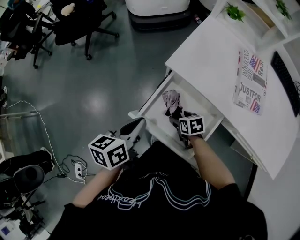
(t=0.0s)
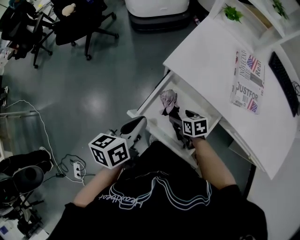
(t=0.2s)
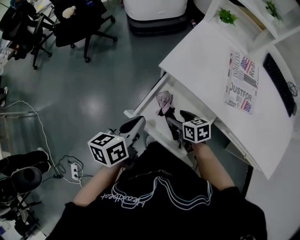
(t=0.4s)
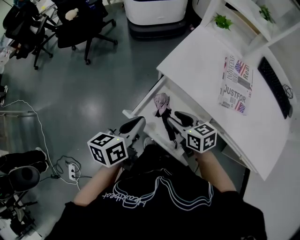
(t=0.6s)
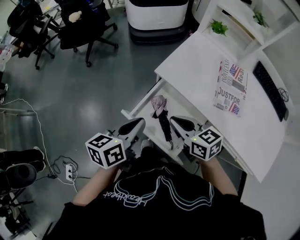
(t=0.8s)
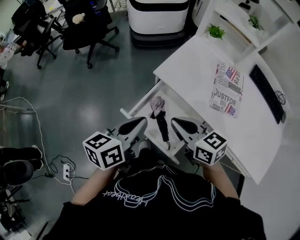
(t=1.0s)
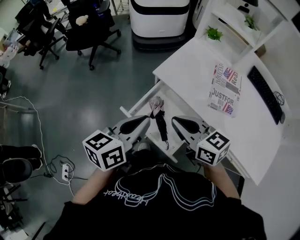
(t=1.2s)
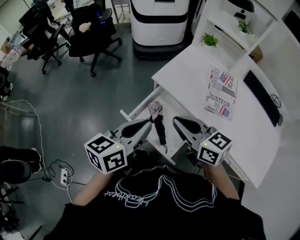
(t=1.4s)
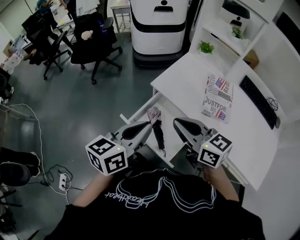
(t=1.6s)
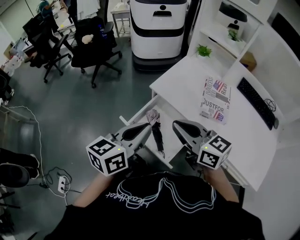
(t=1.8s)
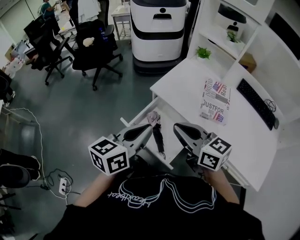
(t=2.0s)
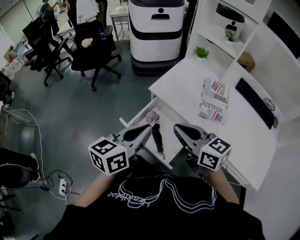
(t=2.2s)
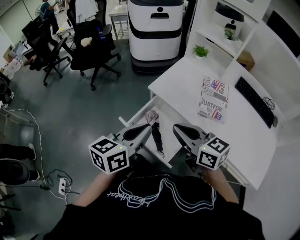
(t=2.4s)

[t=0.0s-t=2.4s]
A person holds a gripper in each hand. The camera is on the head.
t=0.0s to t=1.2s: The right gripper shifts about 35 cm upward, angles its fingers upward, by roughly 40 degrees, and closes up. The left gripper moves upward and to the right, approximately 15 cm.
t=1.2s to t=2.4s: The left gripper moves roughly 5 cm. The right gripper changes place by roughly 5 cm.

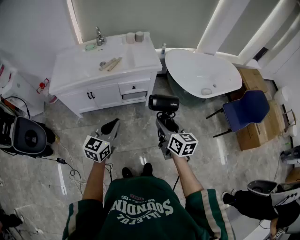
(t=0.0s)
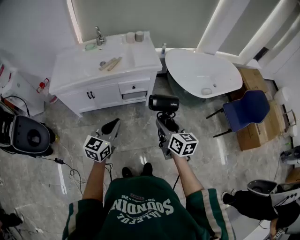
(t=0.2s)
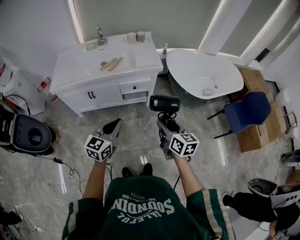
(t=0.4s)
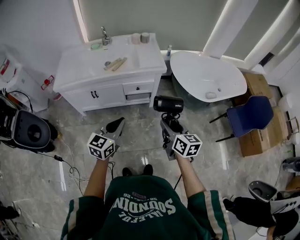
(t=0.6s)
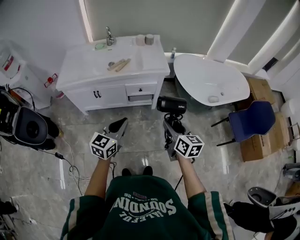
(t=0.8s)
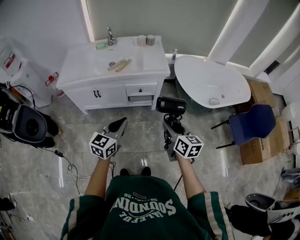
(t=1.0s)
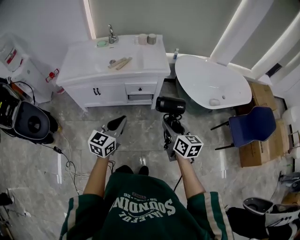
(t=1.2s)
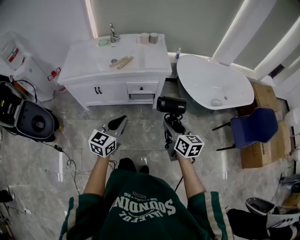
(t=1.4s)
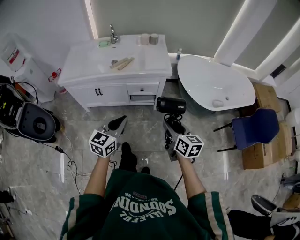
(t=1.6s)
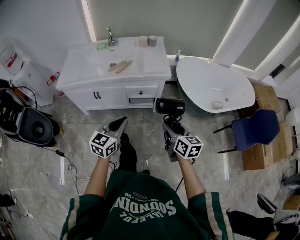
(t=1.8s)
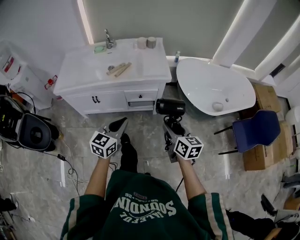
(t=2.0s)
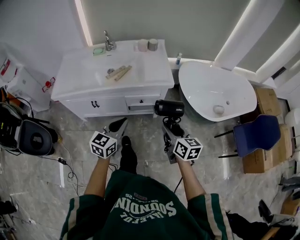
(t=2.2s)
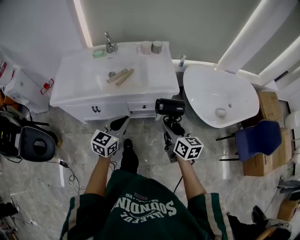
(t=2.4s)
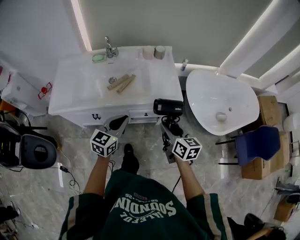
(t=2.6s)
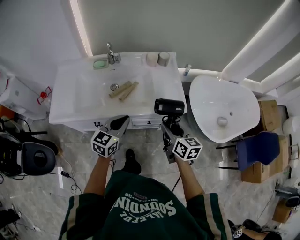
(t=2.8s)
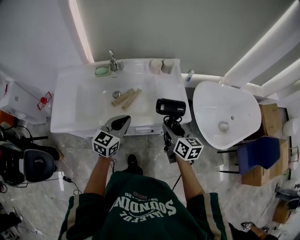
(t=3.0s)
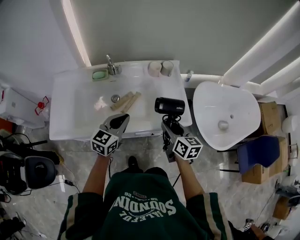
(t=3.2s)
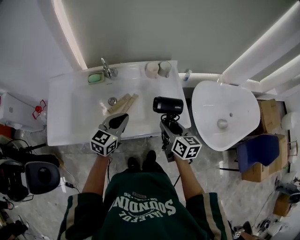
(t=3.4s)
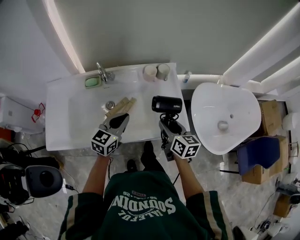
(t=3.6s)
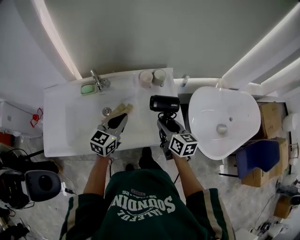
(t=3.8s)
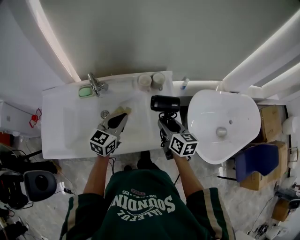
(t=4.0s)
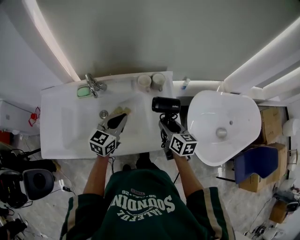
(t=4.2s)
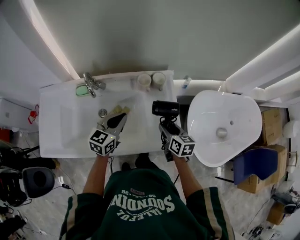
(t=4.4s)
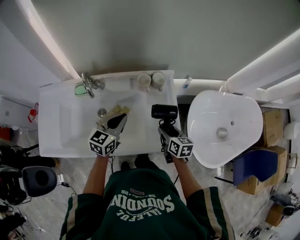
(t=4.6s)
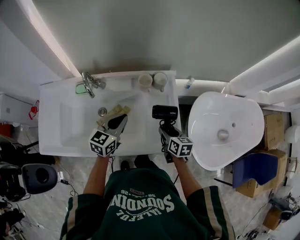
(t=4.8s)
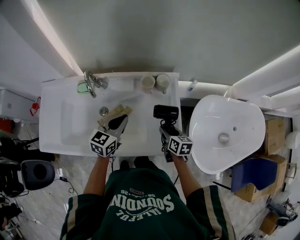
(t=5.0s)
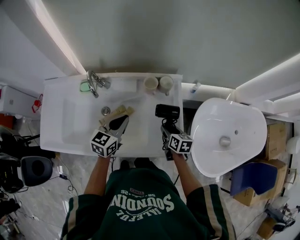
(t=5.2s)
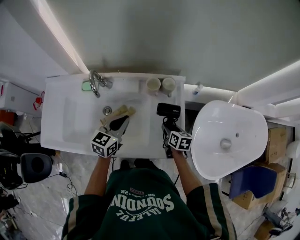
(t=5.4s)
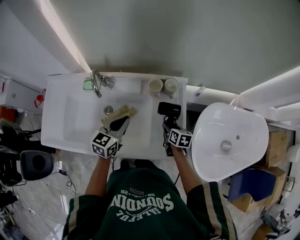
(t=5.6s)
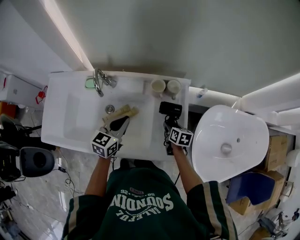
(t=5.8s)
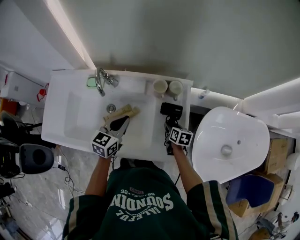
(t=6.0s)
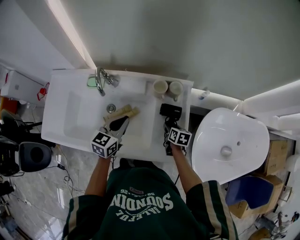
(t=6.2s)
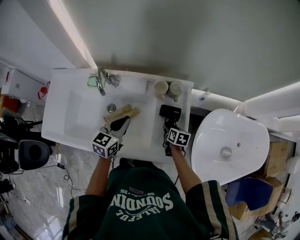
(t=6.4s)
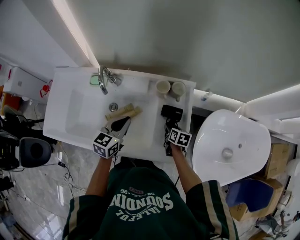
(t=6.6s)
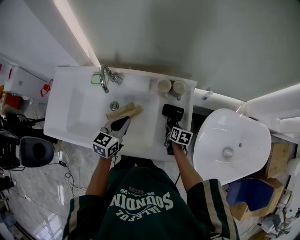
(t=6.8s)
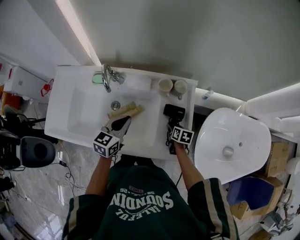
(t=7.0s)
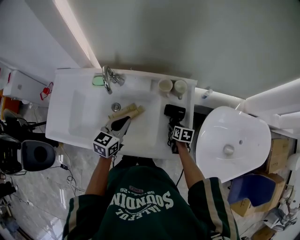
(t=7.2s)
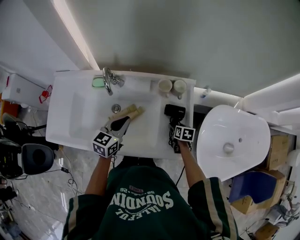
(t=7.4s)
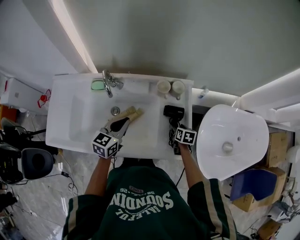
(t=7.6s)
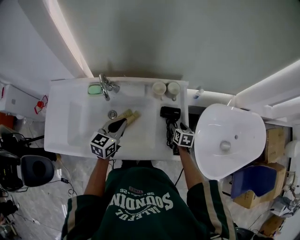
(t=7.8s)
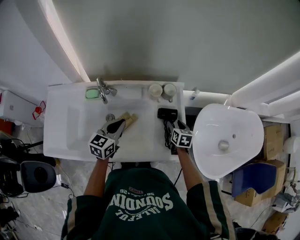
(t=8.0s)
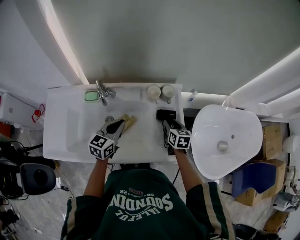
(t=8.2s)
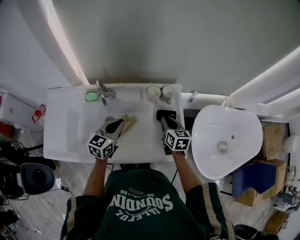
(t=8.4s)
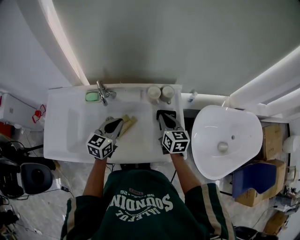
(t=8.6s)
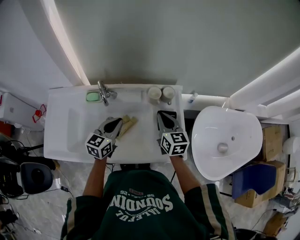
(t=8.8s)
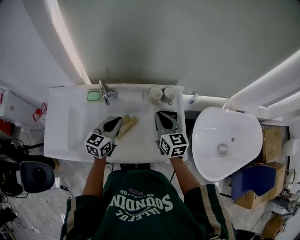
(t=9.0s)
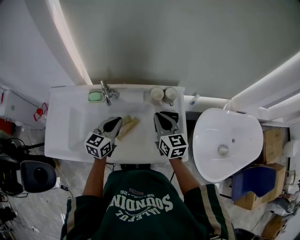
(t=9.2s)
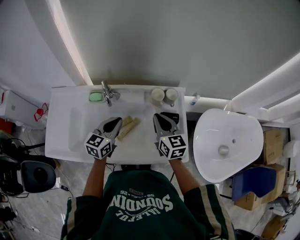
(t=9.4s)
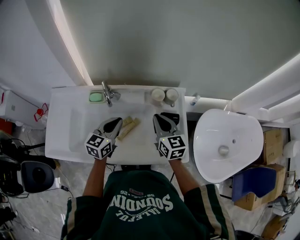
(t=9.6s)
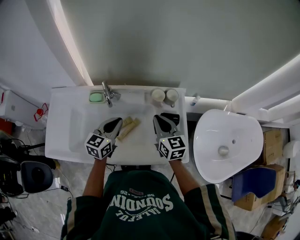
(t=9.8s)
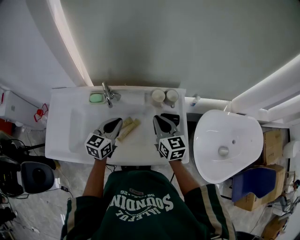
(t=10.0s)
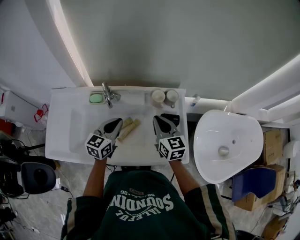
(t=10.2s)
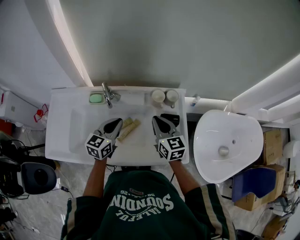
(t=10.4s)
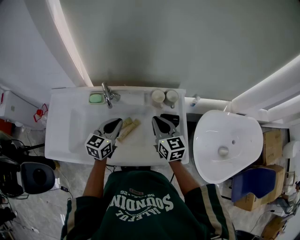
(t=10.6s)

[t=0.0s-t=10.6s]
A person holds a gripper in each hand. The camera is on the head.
t=0.0s to t=1.6s: The grippers both shift to the right by roughly 5 cm.
t=1.6s to t=3.0s: Both grippers are carried forward and to the left, about 40 cm.
t=3.0s to t=4.6s: The left gripper moves forward, about 20 cm. The right gripper travels forward and downward by some 25 cm.
t=4.6s to t=6.0s: The right gripper goes approximately 15 cm downward and forward.
t=6.0s to t=7.6s: There are only small adjustments of the grippers.
t=7.6s to t=9.0s: The right gripper heads upward and to the left, covering roughly 30 cm, points its fingers roughly 40 degrees further upward, and closes.
t=9.0s to t=10.6s: The grippers make only small movements.

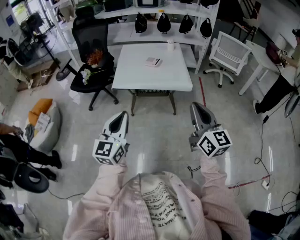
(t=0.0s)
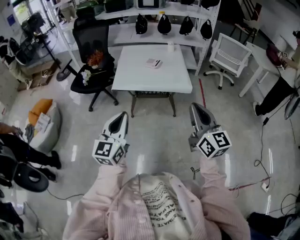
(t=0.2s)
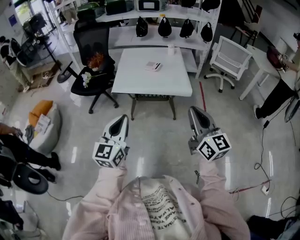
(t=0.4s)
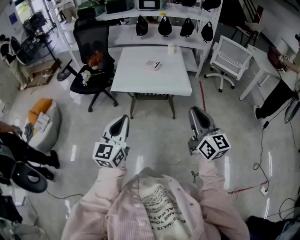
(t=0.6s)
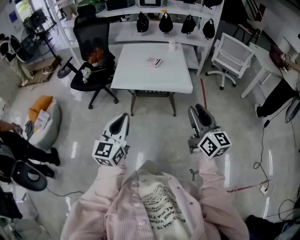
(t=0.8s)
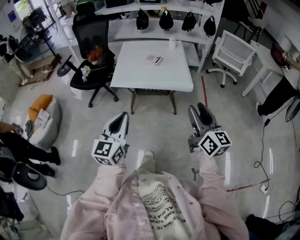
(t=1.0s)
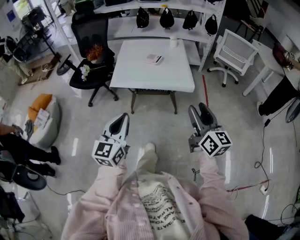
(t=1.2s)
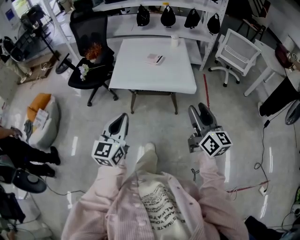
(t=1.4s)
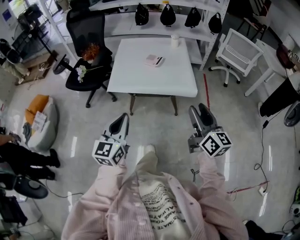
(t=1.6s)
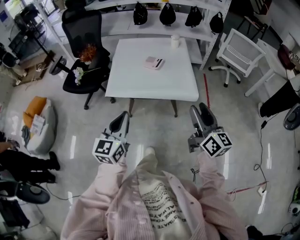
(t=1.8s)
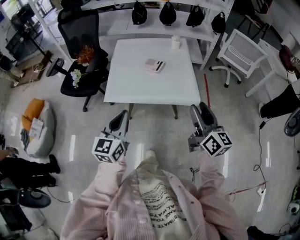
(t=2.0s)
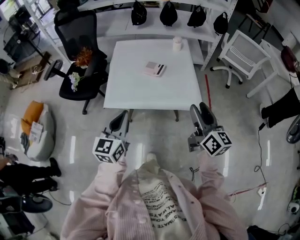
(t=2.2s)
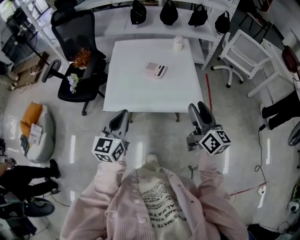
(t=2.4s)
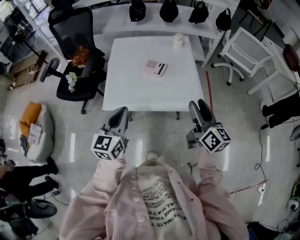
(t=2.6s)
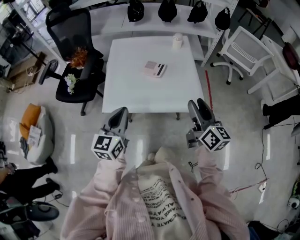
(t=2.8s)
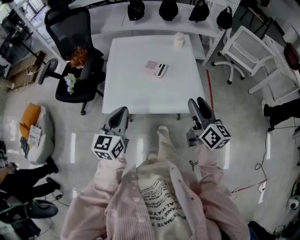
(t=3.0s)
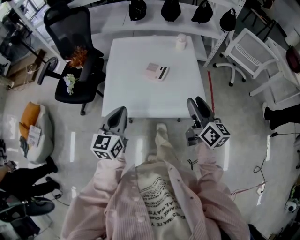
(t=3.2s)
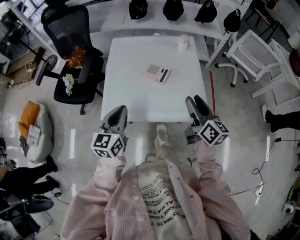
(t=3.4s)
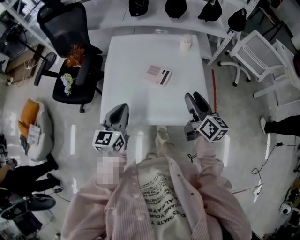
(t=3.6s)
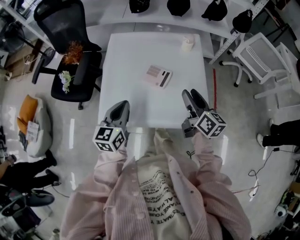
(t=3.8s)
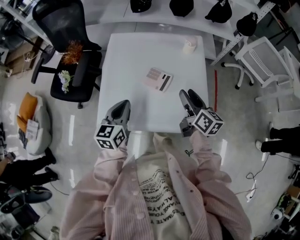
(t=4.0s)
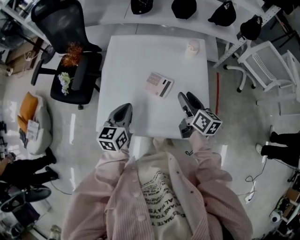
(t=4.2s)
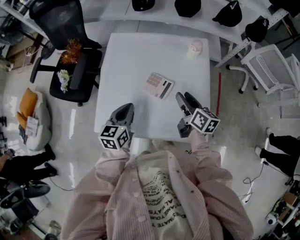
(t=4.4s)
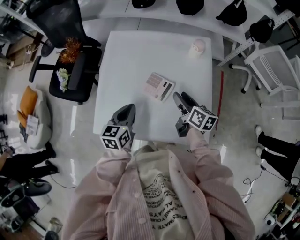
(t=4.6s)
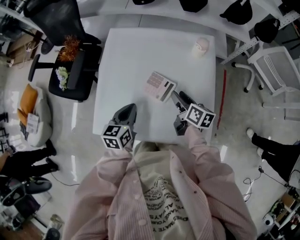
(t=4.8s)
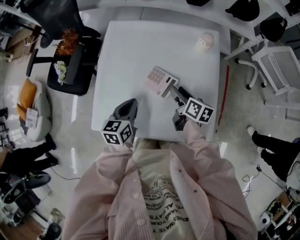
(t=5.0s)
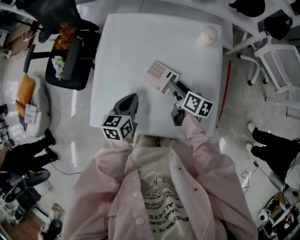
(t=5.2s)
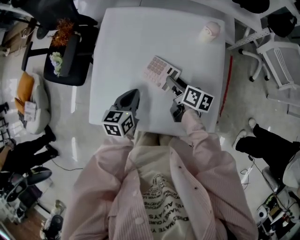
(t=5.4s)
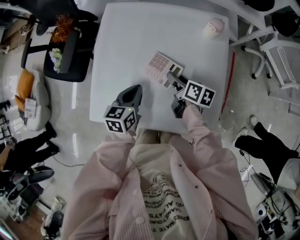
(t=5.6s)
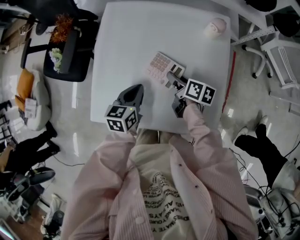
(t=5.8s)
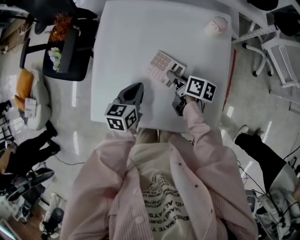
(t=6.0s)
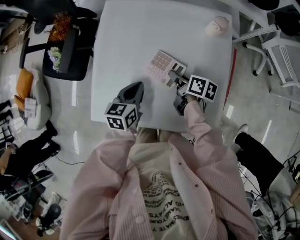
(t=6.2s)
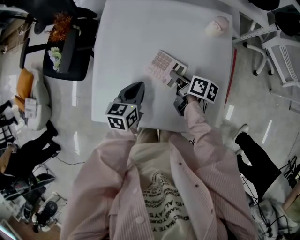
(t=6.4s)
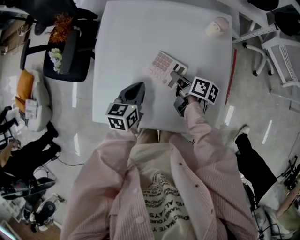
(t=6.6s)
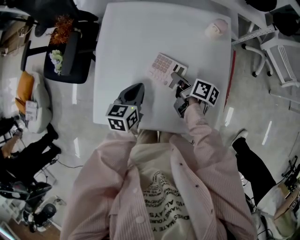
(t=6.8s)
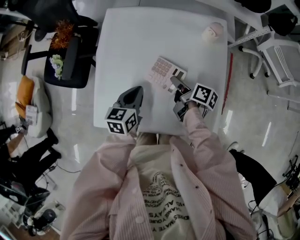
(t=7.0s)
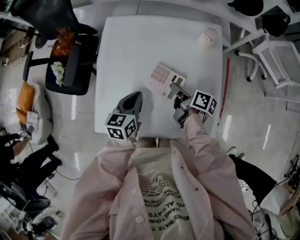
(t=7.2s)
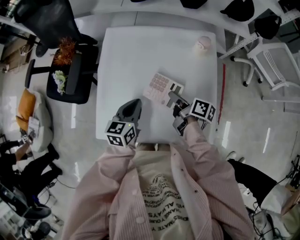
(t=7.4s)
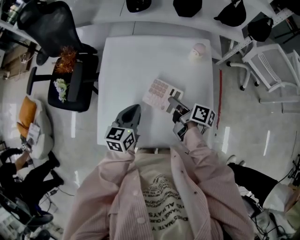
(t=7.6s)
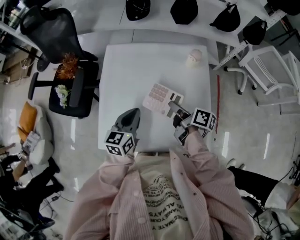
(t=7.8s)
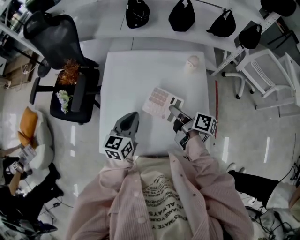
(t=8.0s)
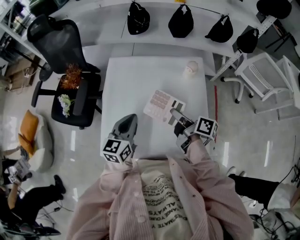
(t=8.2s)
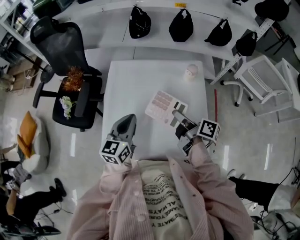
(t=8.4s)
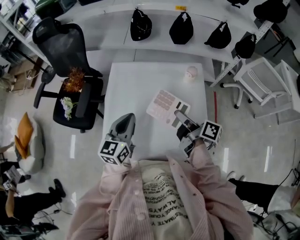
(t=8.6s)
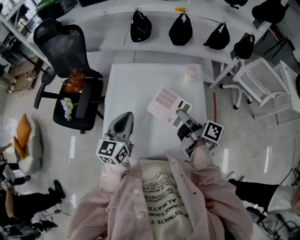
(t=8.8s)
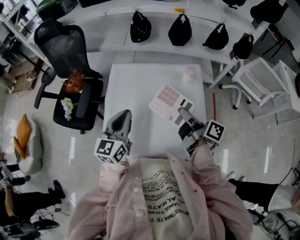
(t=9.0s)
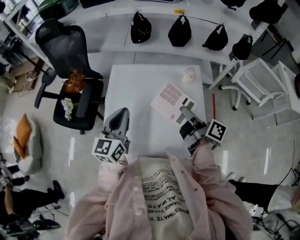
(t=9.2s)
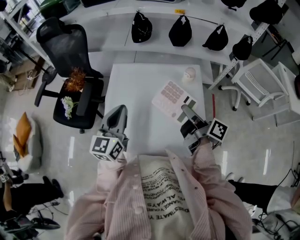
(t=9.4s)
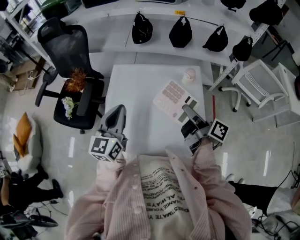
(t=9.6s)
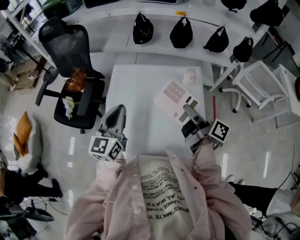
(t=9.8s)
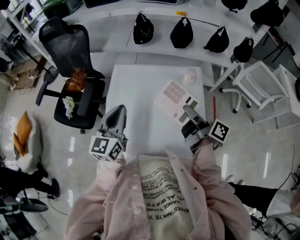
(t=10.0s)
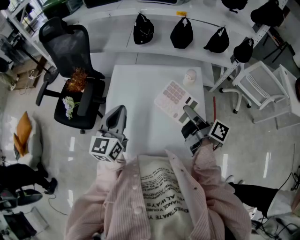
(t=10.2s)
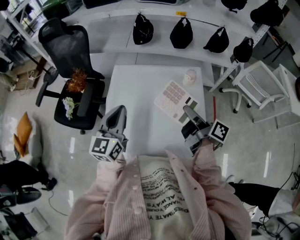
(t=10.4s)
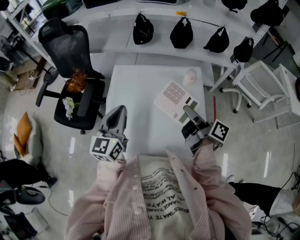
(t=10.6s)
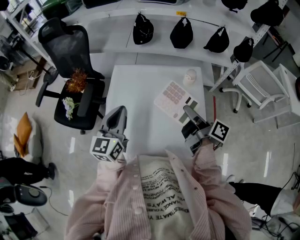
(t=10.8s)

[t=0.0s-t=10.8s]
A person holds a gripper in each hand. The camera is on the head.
t=0.0s to t=1.6s: The grippers both shift forward and downward by roughly 15 cm. The right gripper opens.
t=1.6s to t=3.0s: Both grippers travel together forward, roughly 25 cm.
t=3.0s to t=4.6s: Both grippers move forward and downward, some 30 cm. The right gripper swivels approximately 30 degrees, while the left gripper rotates some 20 degrees.
t=4.6s to t=6.2s: The right gripper is displaced downward and to the left by some 15 cm, and changes its angle by approximately 20 degrees, while the left gripper goes roughly 10 cm downward.
t=6.2s to t=7.8s: Both grippers move upward, approximately 10 cm.
t=7.8s to t=9.2s: Both grippers move upward, about 15 cm. The left gripper turns by about 20 degrees.
t=9.2s to t=10.8s: There are only small adjustments of the grippers.
